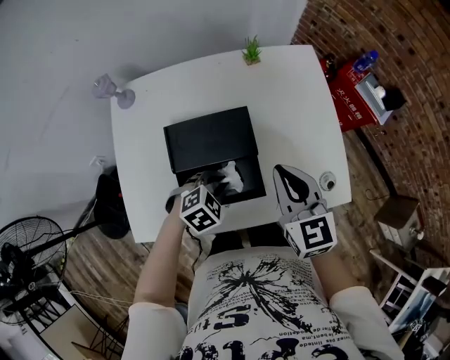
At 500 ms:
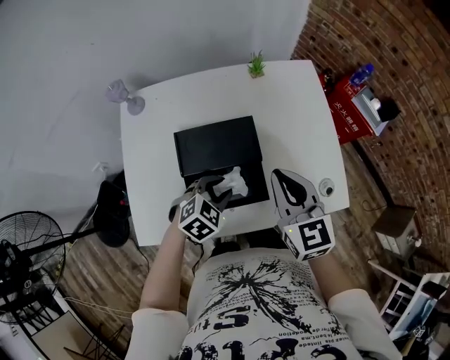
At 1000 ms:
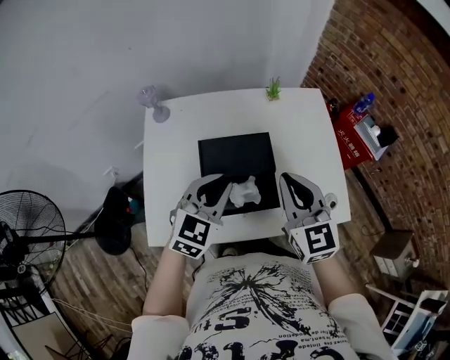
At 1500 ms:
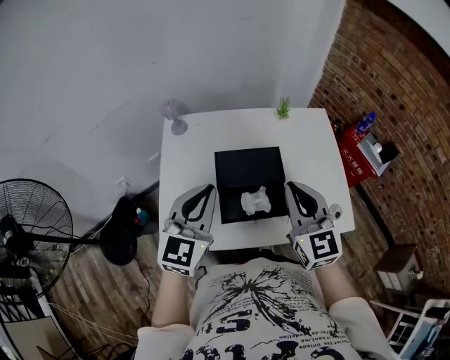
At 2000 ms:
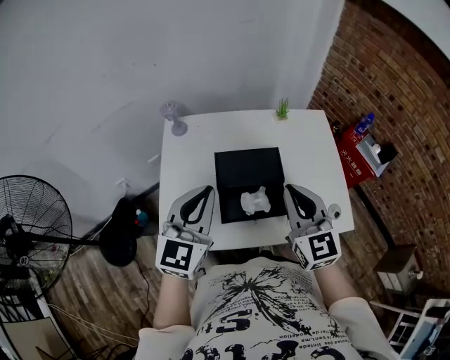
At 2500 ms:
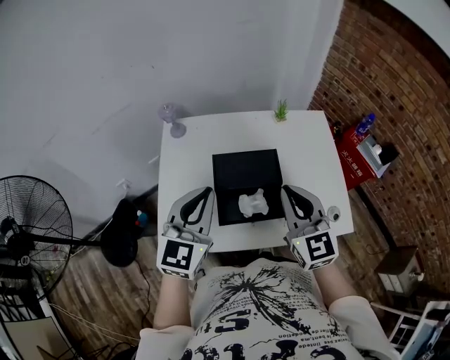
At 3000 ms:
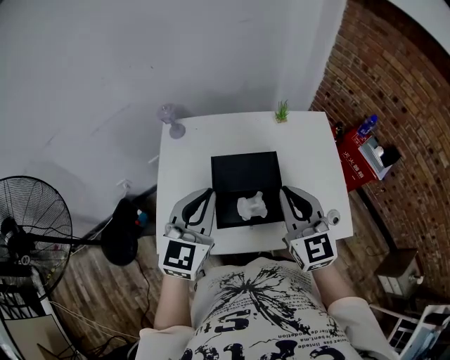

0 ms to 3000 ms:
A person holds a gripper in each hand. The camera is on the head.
0 ms to 1500 ms: The left gripper moves upward and to the left, roughly 35 cm, and points its fingers roughly 50 degrees further upward; the right gripper heads upward, backward and to the left, covering about 20 cm.
1500 ms to 3000 ms: The grippers stay close to where they were, moving slightly.

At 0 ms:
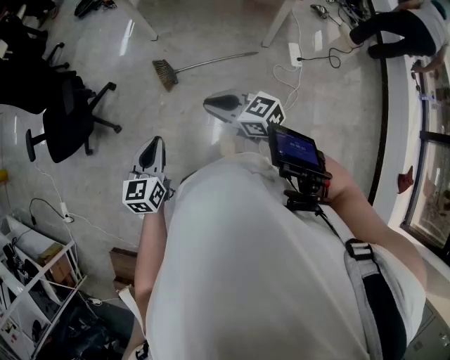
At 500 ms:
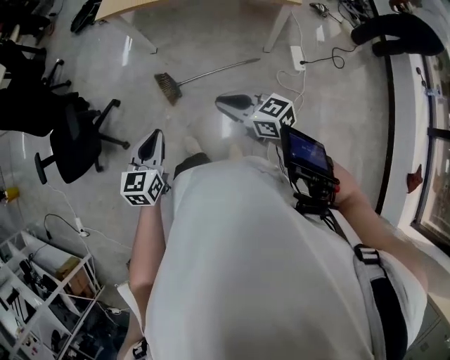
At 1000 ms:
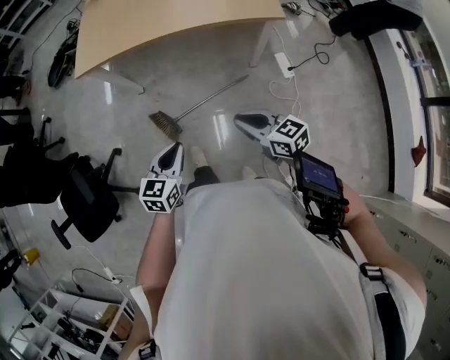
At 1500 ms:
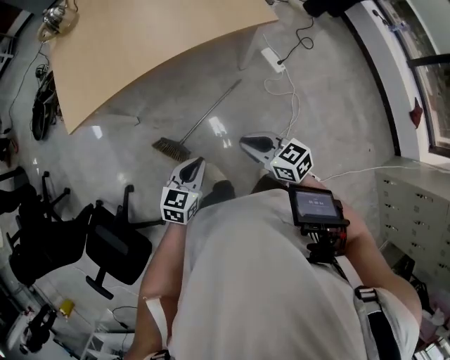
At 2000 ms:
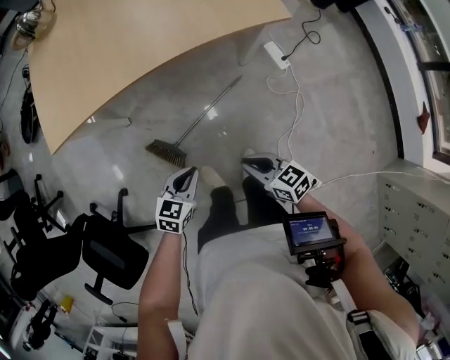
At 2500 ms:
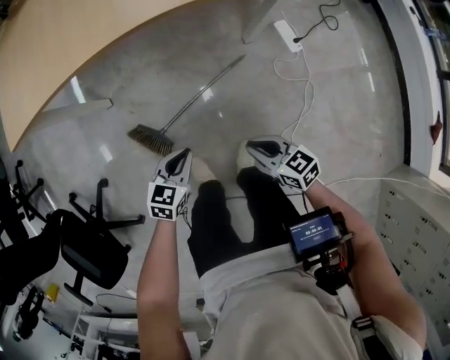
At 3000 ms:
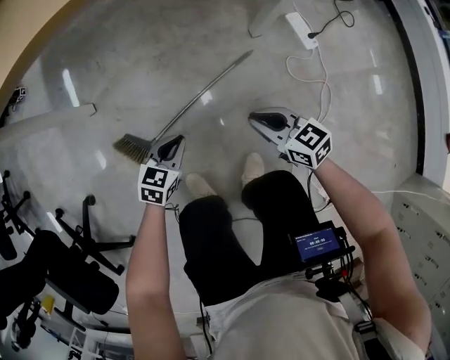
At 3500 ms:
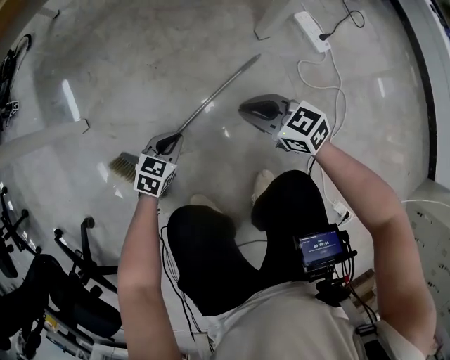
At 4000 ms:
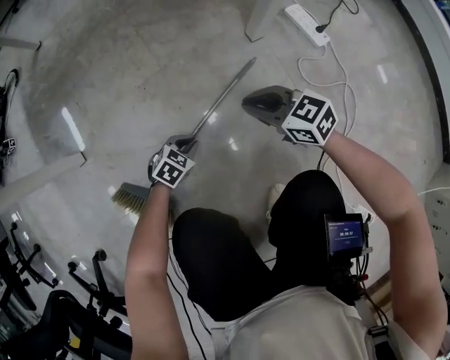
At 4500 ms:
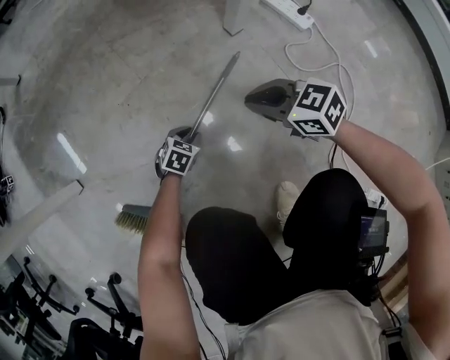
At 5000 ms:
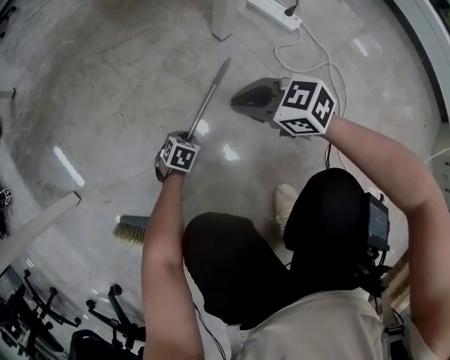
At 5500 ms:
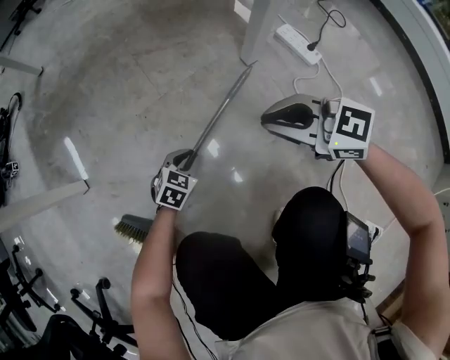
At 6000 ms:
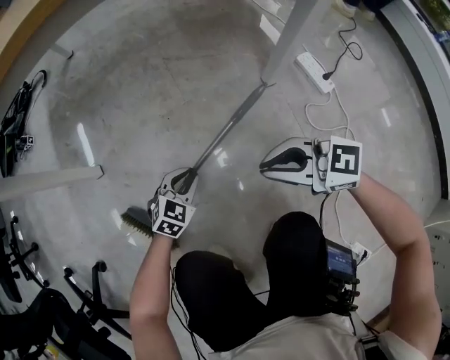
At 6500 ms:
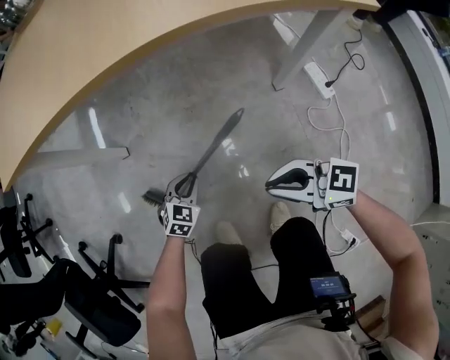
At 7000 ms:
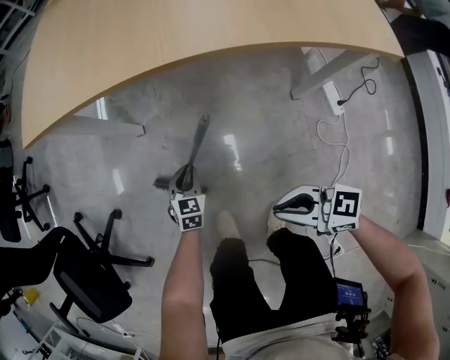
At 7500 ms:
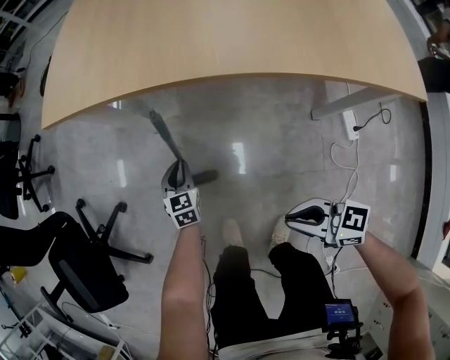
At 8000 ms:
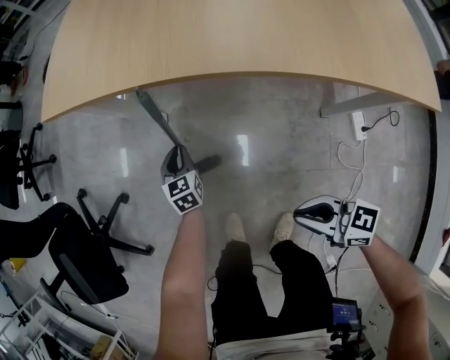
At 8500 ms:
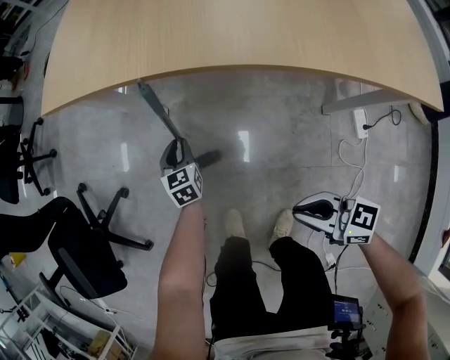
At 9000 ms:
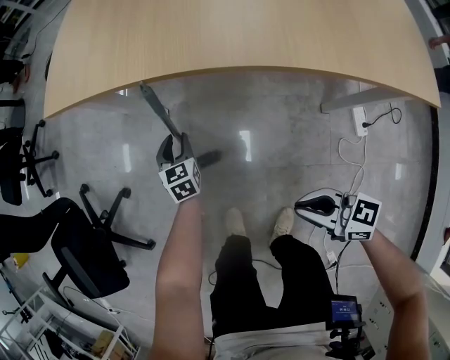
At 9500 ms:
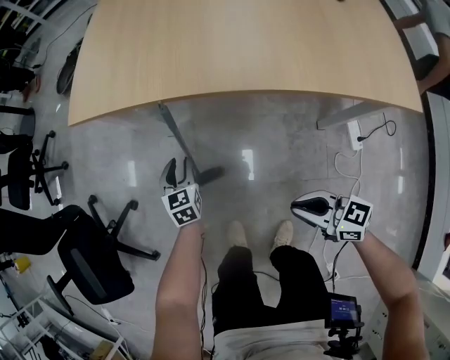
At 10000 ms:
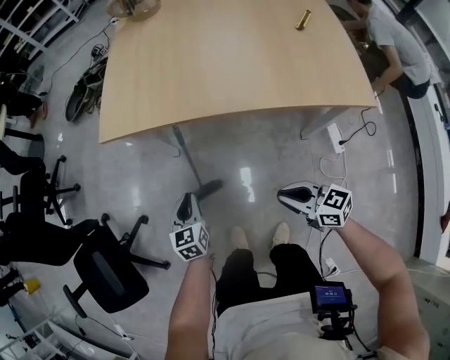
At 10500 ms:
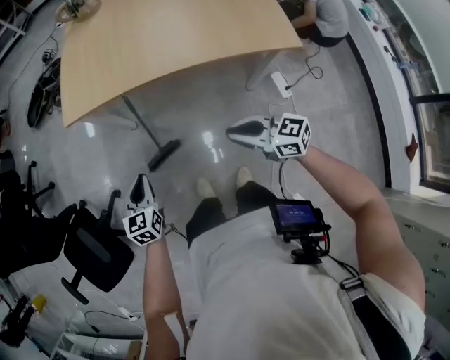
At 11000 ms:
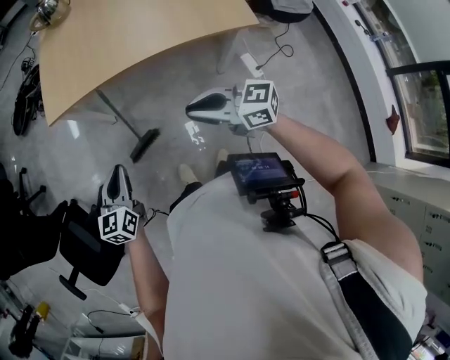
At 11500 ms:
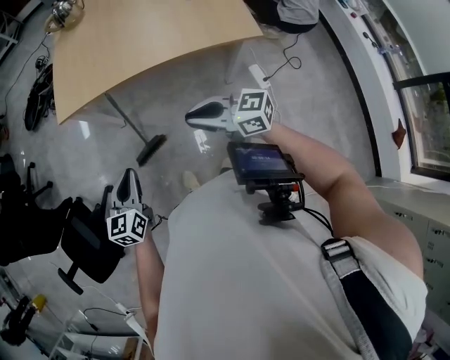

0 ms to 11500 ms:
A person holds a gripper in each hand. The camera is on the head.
0 ms to 2000 ms: The left gripper changes place by roughly 35 cm, and rotates some 50 degrees. The right gripper moves about 25 cm, and rotates approximately 40 degrees.
2000 ms to 4000 ms: Both grippers travel together downward, some 50 cm. The left gripper turns by approximately 30 degrees.
4000 ms to 6000 ms: Both grippers move upward, approximately 15 cm. The left gripper turns by about 20 degrees. Meanwhile the right gripper swivels approximately 30 degrees.
6000 ms to 7500 ms: The right gripper shifts about 15 cm upward, and turns by roughly 20 degrees; the left gripper shifts by some 30 cm, and changes its angle by about 60 degrees.
7500 ms to 9500 ms: The left gripper goes about 10 cm upward, and opens.
9500 ms to 11500 ms: The left gripper heads upward and backward, covering about 40 cm, turns by some 30 degrees, and closes its fingers. The right gripper moves upward, roughly 30 cm.

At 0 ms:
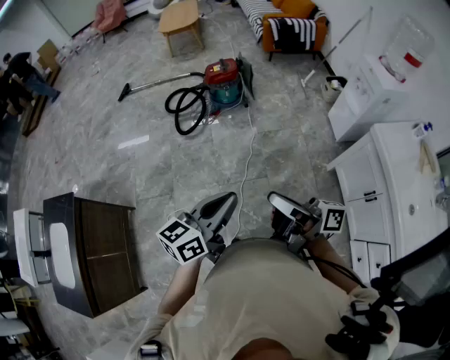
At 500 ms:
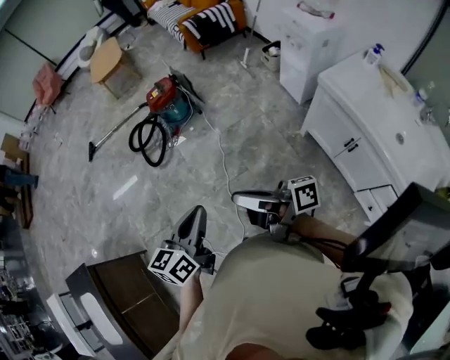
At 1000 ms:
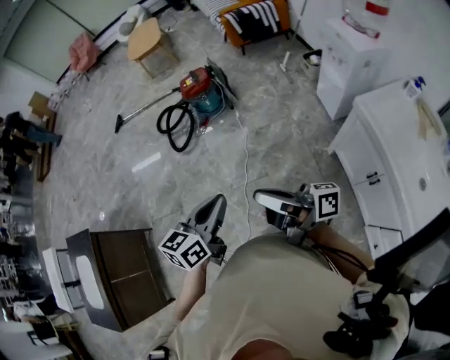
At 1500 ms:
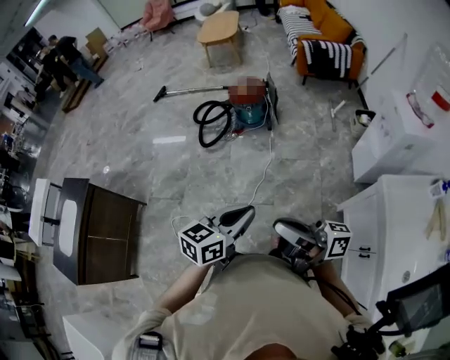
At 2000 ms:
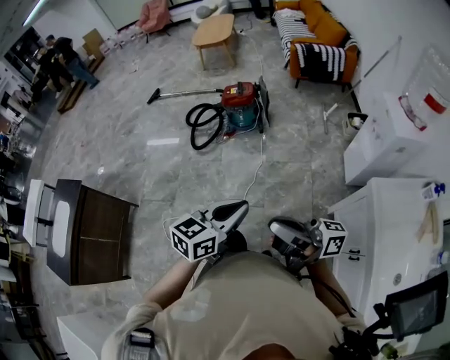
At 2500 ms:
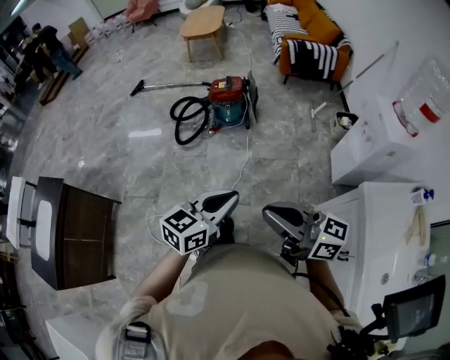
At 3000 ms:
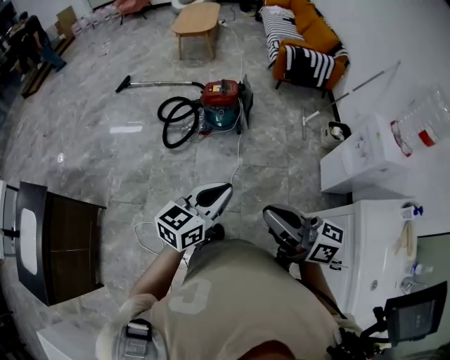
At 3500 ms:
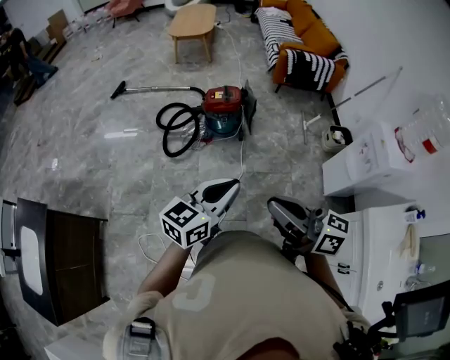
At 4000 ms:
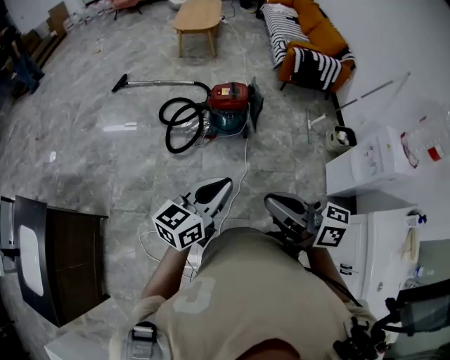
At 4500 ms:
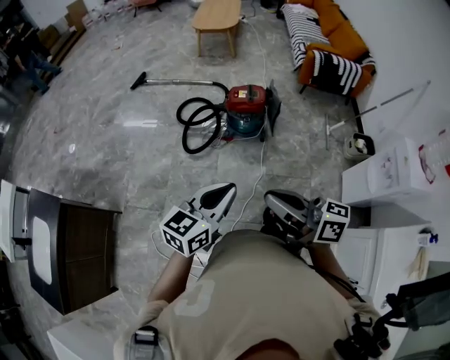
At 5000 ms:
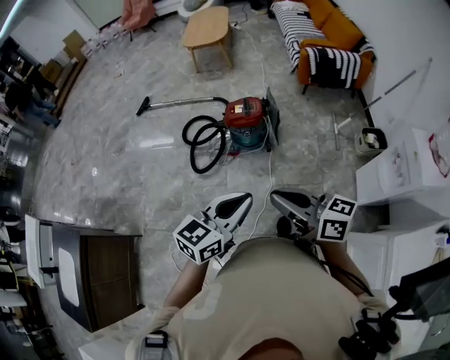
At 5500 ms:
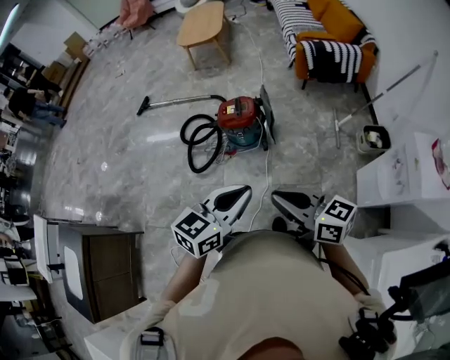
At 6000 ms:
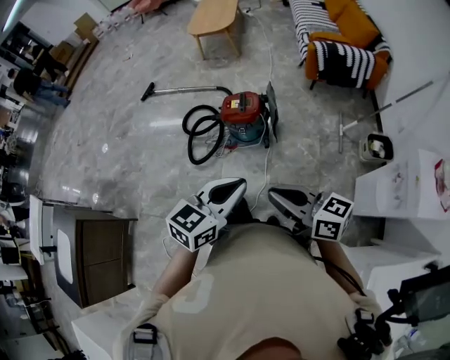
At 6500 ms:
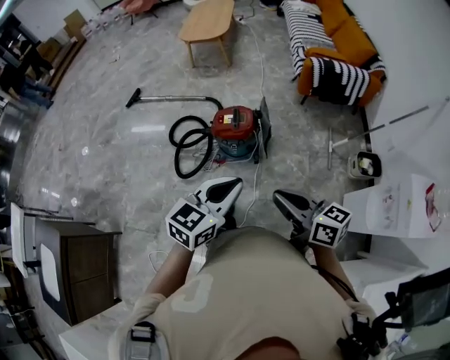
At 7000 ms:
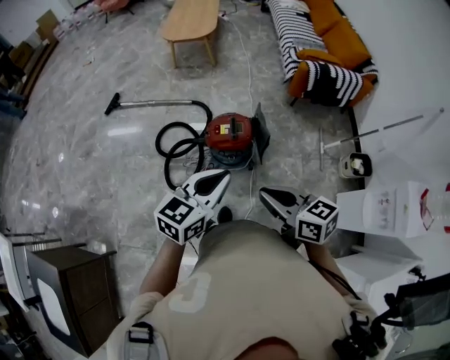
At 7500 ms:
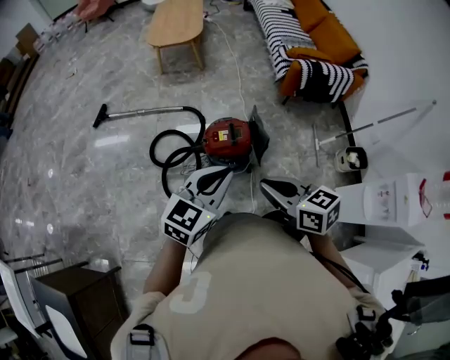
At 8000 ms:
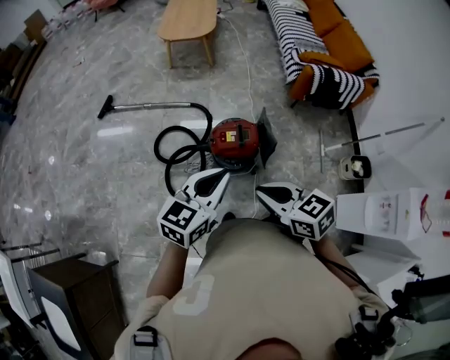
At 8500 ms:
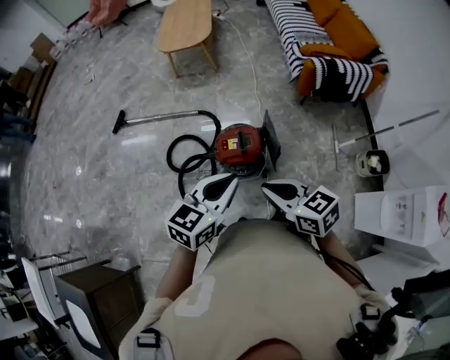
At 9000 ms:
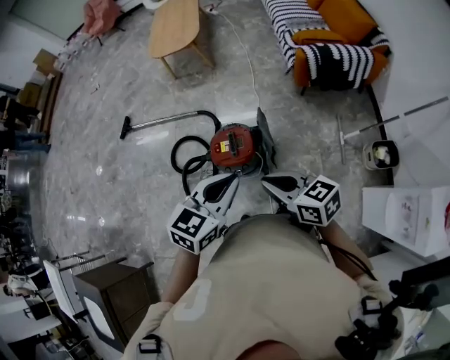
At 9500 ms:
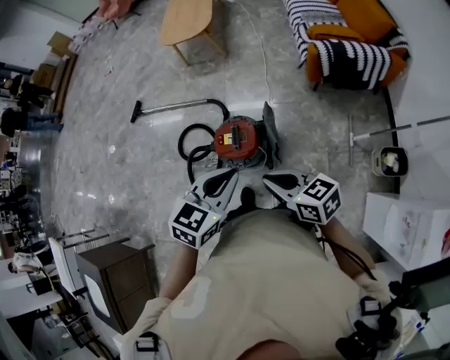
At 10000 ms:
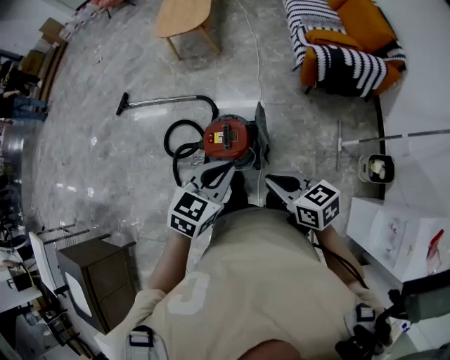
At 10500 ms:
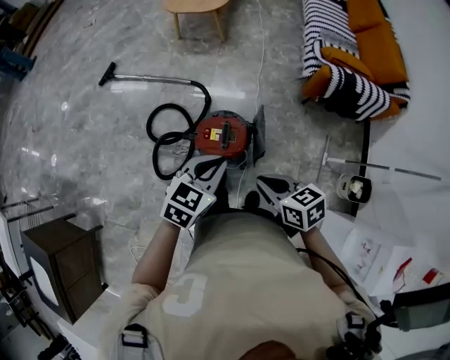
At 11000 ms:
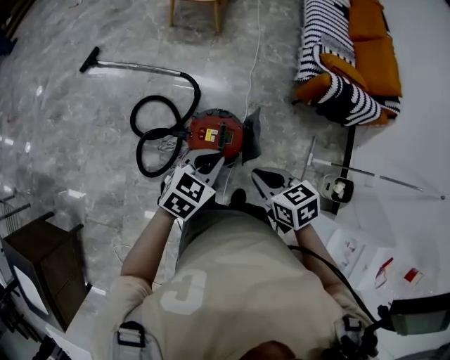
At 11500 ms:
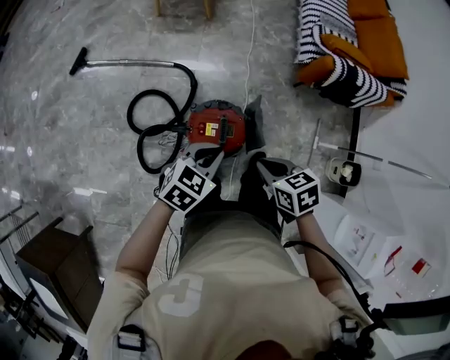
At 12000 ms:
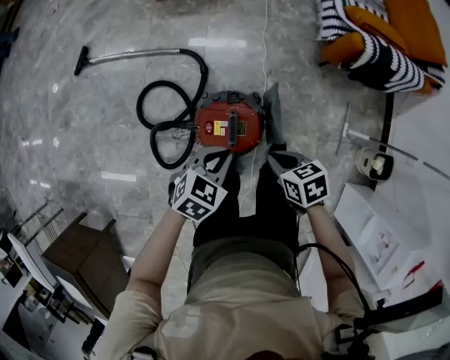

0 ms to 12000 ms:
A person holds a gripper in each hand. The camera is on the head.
0 ms to 2000 ms: Both grippers move to the right, about 20 cm. The right gripper rotates roughly 20 degrees.
2000 ms to 4000 ms: The two grippers go approximately 30 cm forward and to the left. The right gripper rotates about 30 degrees.
4000 ms to 6000 ms: The grippers both shift to the right and forward by about 30 cm.
6000 ms to 8000 ms: The two grippers go some 40 cm forward and to the left. The right gripper angles its fingers downward, by about 30 degrees.
8000 ms to 10000 ms: Both grippers move to the right, roughly 25 cm. The left gripper changes its angle by some 20 degrees.
10000 ms to 12000 ms: The right gripper travels downward and forward by approximately 30 cm, and angles its fingers downward, by roughly 30 degrees. Meanwhile the left gripper heads downward, forward and to the left, covering approximately 30 cm, and changes its angle by about 20 degrees.
